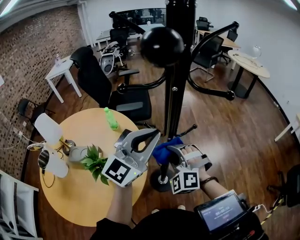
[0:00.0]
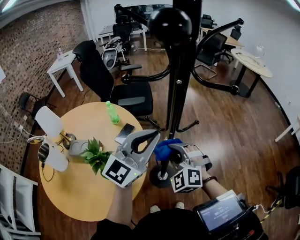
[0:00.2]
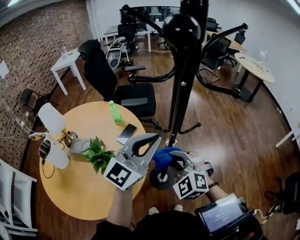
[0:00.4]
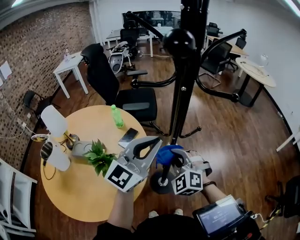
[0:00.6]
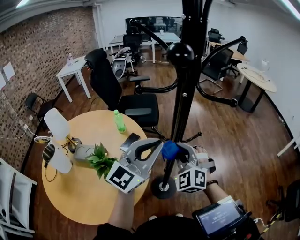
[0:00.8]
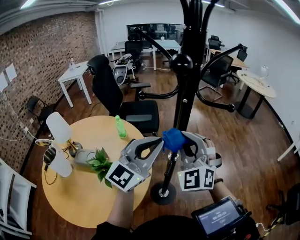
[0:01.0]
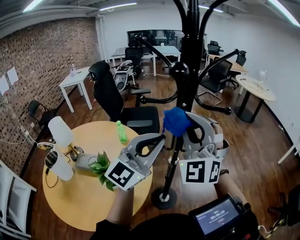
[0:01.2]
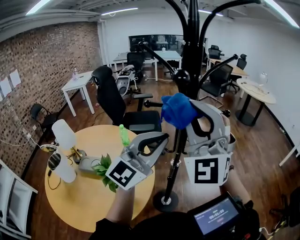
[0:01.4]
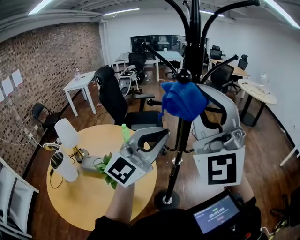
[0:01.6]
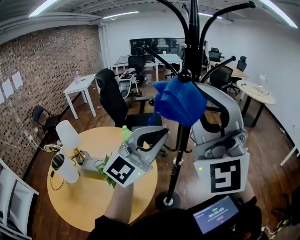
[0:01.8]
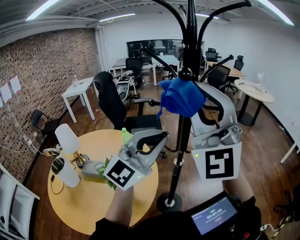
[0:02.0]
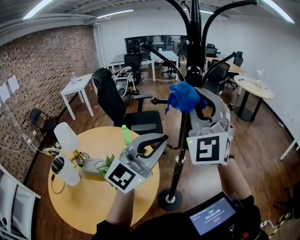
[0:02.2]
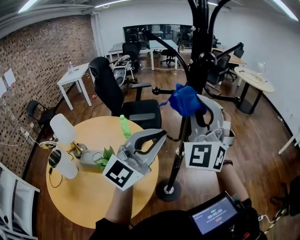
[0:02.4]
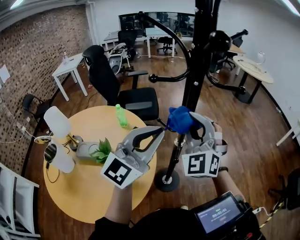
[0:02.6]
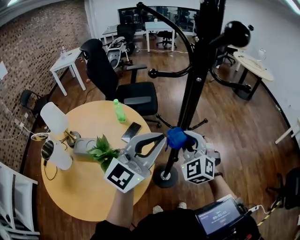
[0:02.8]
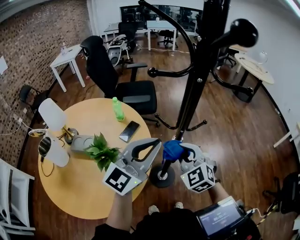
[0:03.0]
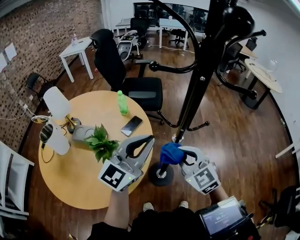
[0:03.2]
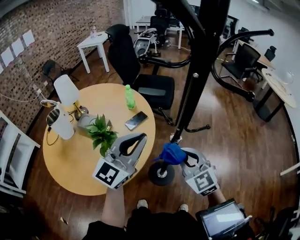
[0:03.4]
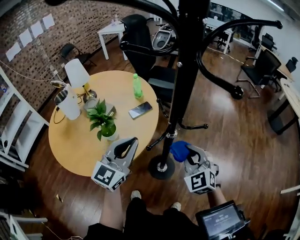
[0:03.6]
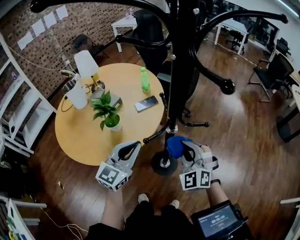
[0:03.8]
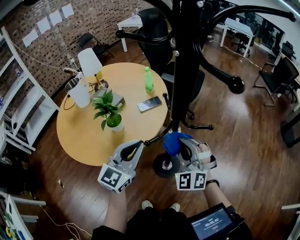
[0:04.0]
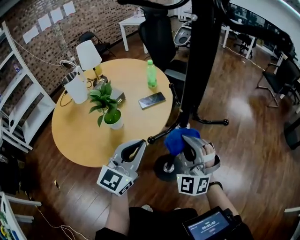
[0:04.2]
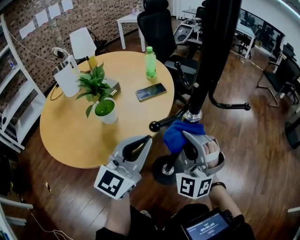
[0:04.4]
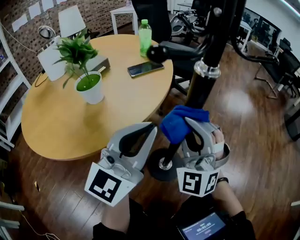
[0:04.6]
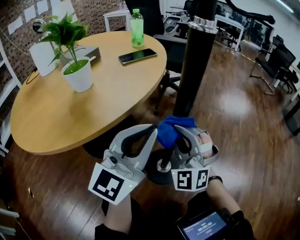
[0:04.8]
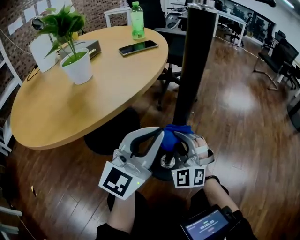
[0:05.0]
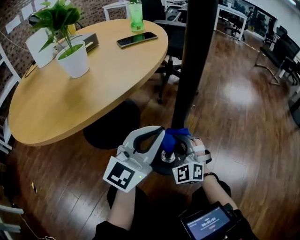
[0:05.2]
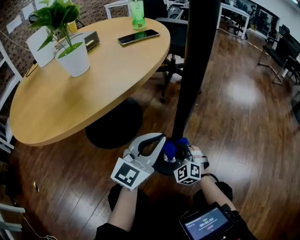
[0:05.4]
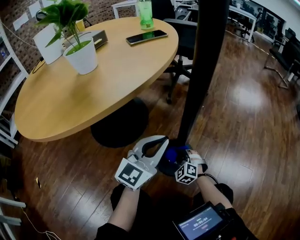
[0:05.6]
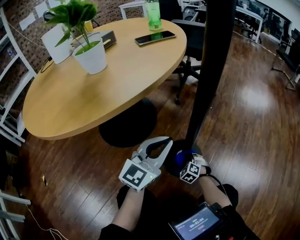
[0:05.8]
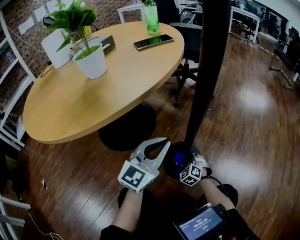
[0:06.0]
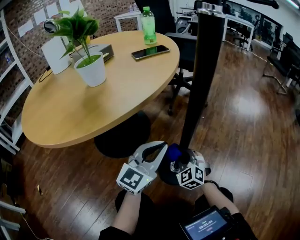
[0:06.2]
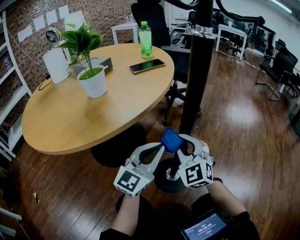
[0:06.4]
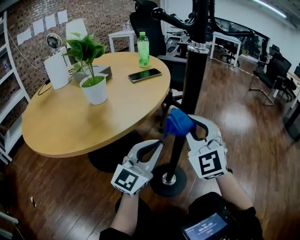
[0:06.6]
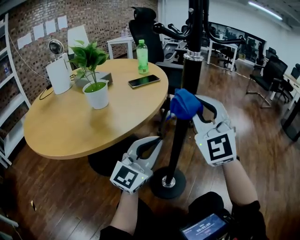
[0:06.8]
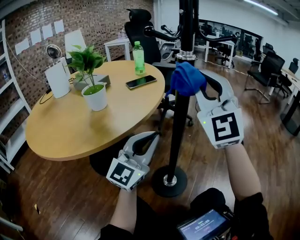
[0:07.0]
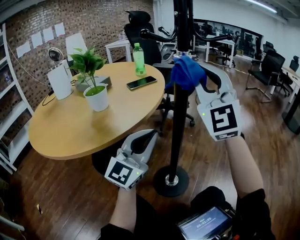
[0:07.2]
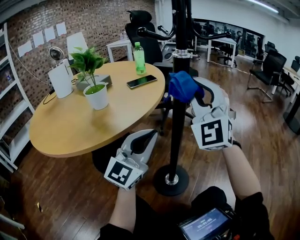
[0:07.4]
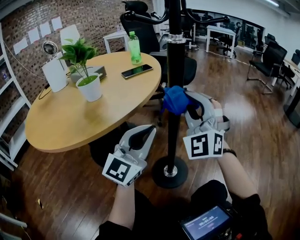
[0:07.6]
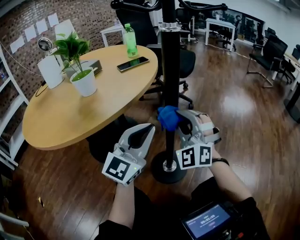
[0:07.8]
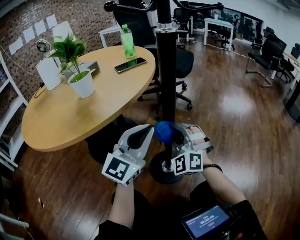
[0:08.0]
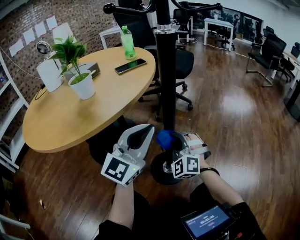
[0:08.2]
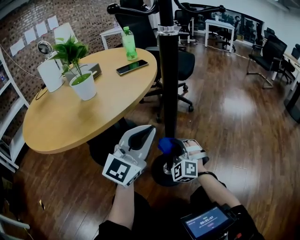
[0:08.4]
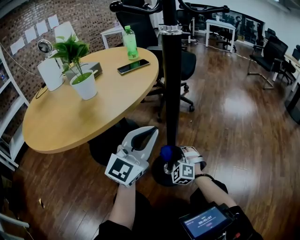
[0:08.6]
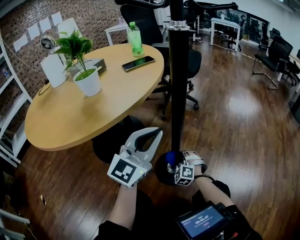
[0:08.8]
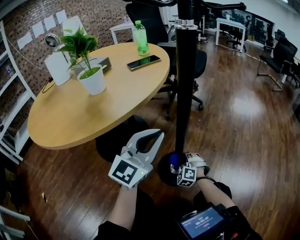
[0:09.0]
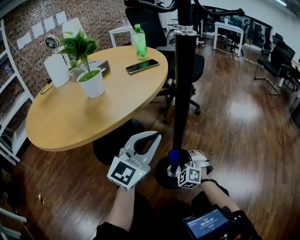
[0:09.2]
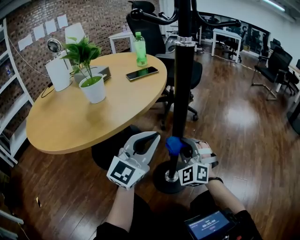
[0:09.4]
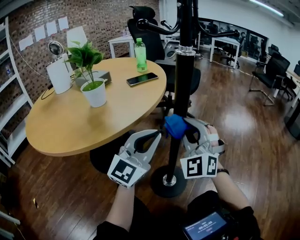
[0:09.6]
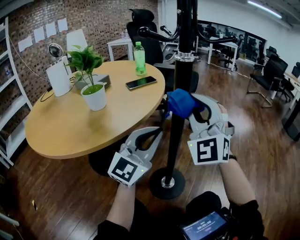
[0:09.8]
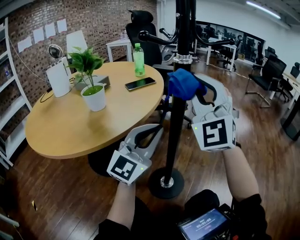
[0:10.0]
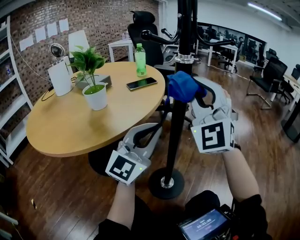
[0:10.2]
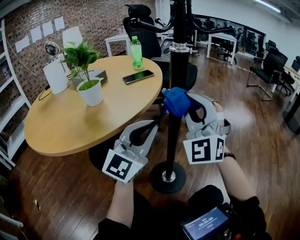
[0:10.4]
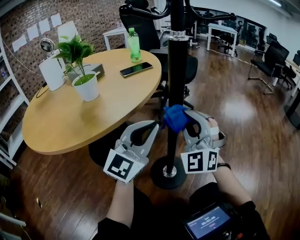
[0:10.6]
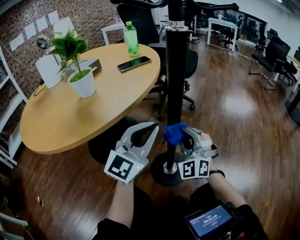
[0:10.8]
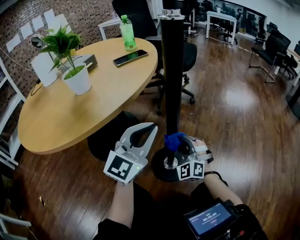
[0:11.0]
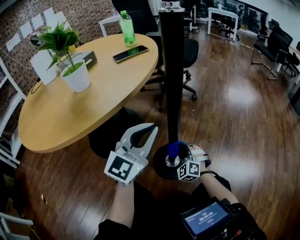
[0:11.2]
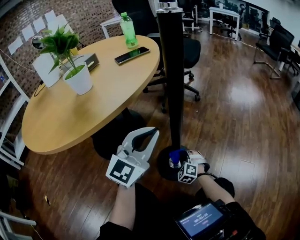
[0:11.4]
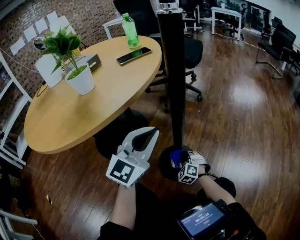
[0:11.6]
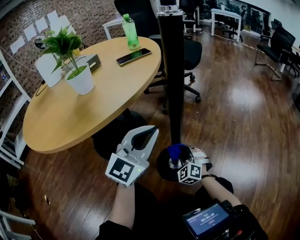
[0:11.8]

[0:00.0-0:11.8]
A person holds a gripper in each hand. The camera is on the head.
0:00.0 to 0:01.4: The right gripper moves upward, some 35 cm, and tips its fingers upward by some 40 degrees; the left gripper shifts about 10 cm upward.
0:01.4 to 0:03.0: The right gripper moves downward, about 35 cm, and points its fingers some 50 degrees further downward. Meanwhile the left gripper goes some 10 cm downward.
0:03.0 to 0:04.4: The right gripper heads downward, covering roughly 10 cm, and swivels roughly 50 degrees. Meanwhile the left gripper moves downward, roughly 25 cm, and swivels roughly 40 degrees.
0:04.4 to 0:06.0: The right gripper heads downward, covering about 60 cm, and angles its fingers downward, by some 50 degrees. Meanwhile the left gripper is displaced downward by about 35 cm.
0:06.0 to 0:07.4: The right gripper goes some 60 cm upward, and angles its fingers upward, by approximately 60 degrees; the left gripper shifts about 20 cm upward.
0:07.4 to 0:08.8: The left gripper heads downward, covering about 5 cm. The right gripper heads downward, covering approximately 50 cm, and angles its fingers downward, by roughly 50 degrees.
0:08.8 to 0:10.4: The left gripper travels upward by approximately 5 cm. The right gripper goes roughly 50 cm upward, and tilts its fingers about 50 degrees upward.
0:10.4 to 0:11.8: The right gripper heads downward, covering roughly 40 cm, and points its fingers roughly 40 degrees further downward; the left gripper is displaced downward by about 10 cm.

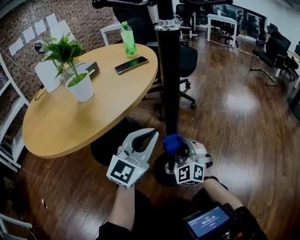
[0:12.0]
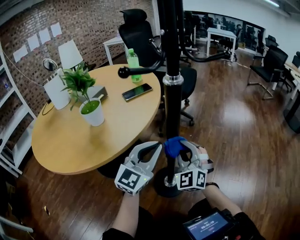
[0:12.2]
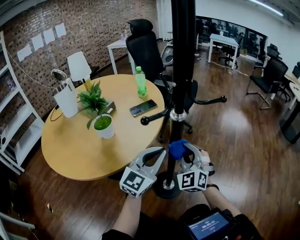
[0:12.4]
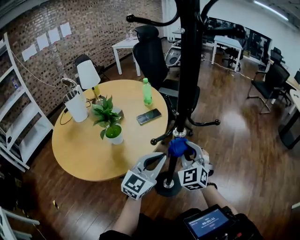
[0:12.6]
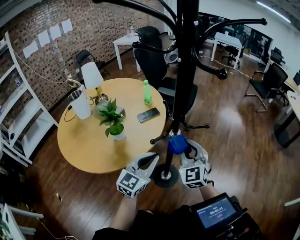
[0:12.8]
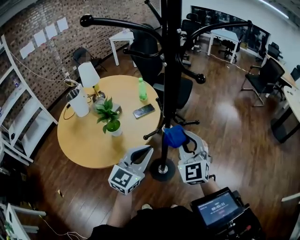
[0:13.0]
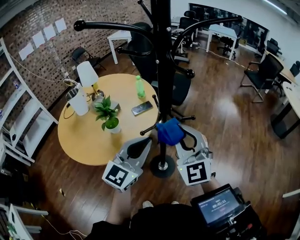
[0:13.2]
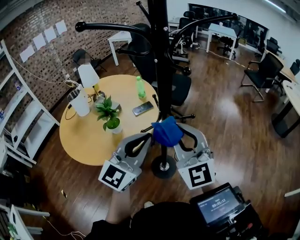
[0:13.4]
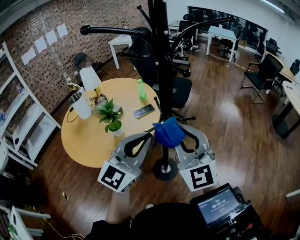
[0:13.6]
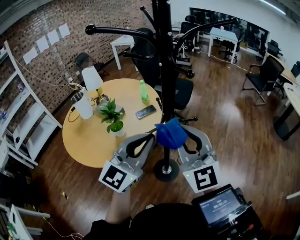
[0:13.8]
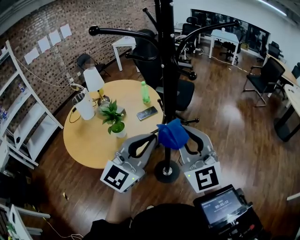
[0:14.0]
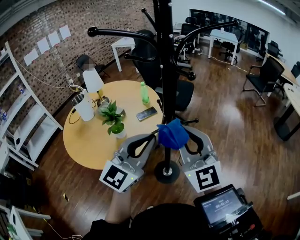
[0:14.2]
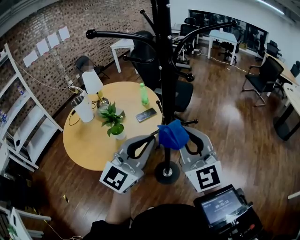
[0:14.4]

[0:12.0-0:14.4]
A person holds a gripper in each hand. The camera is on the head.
0:12.0 to 0:13.2: The two grippers go roughly 50 cm upward. The right gripper rotates about 20 degrees.
0:13.2 to 0:14.4: Both grippers move upward, about 5 cm.

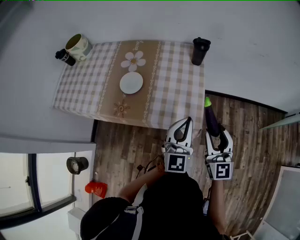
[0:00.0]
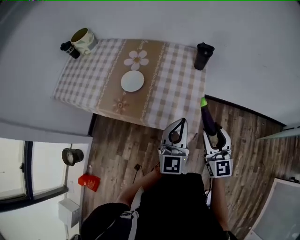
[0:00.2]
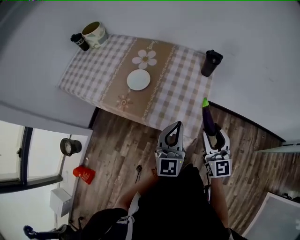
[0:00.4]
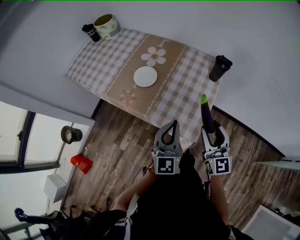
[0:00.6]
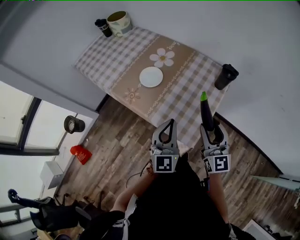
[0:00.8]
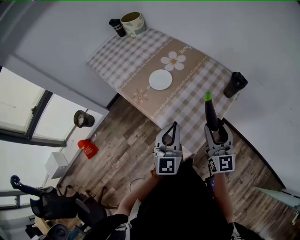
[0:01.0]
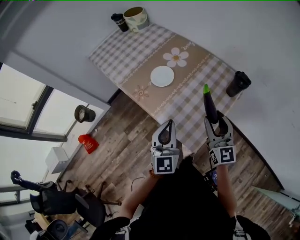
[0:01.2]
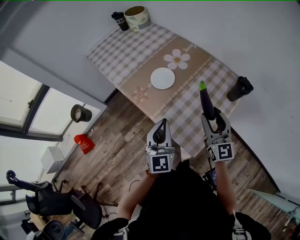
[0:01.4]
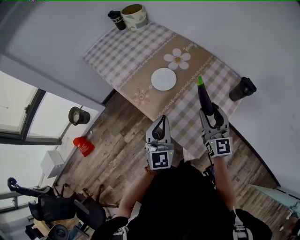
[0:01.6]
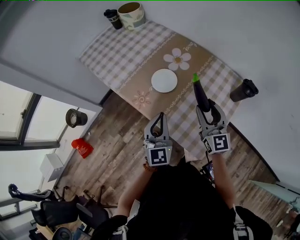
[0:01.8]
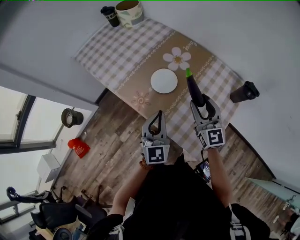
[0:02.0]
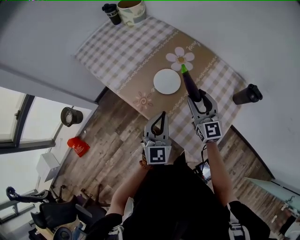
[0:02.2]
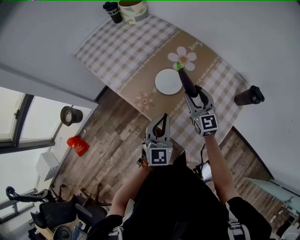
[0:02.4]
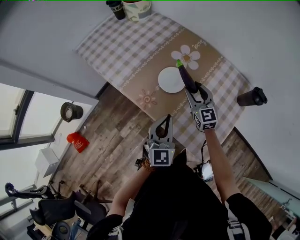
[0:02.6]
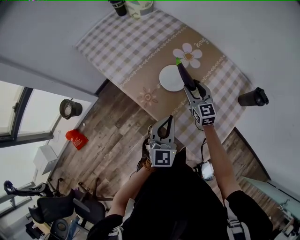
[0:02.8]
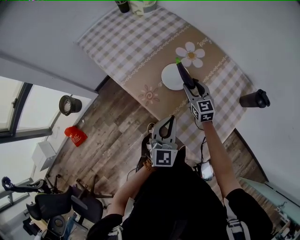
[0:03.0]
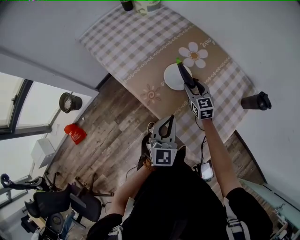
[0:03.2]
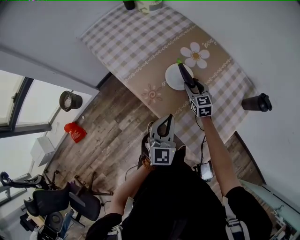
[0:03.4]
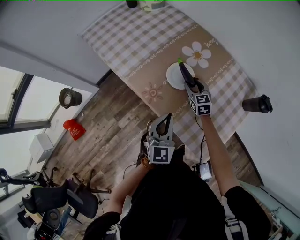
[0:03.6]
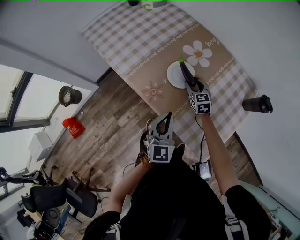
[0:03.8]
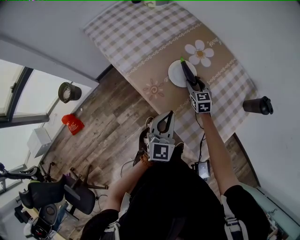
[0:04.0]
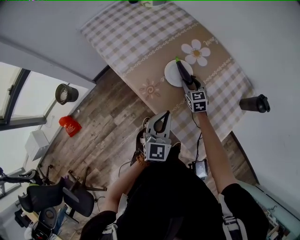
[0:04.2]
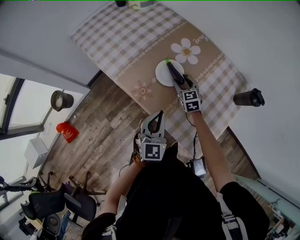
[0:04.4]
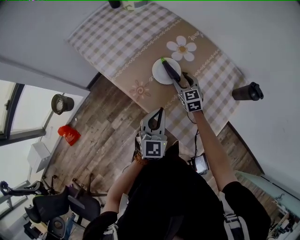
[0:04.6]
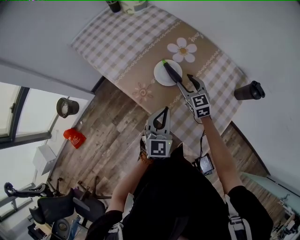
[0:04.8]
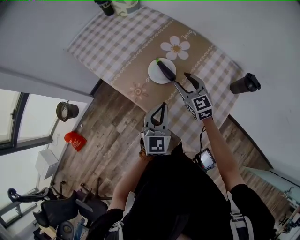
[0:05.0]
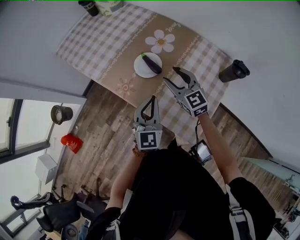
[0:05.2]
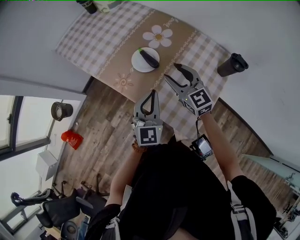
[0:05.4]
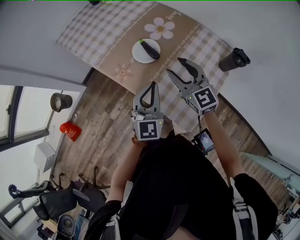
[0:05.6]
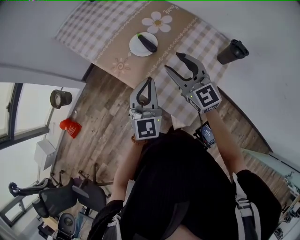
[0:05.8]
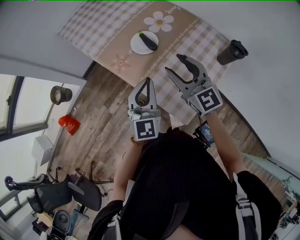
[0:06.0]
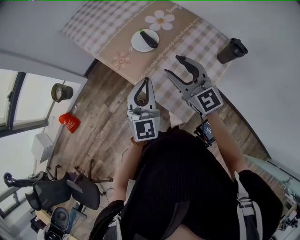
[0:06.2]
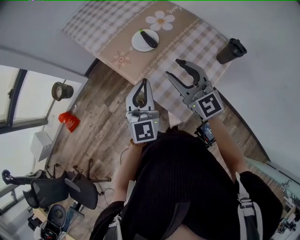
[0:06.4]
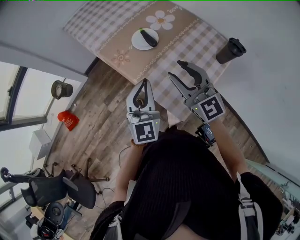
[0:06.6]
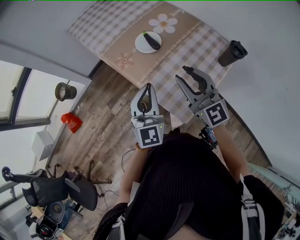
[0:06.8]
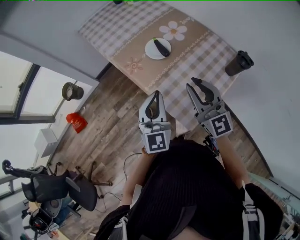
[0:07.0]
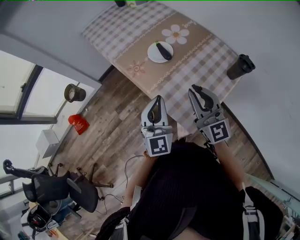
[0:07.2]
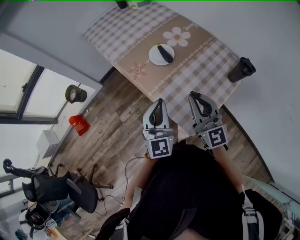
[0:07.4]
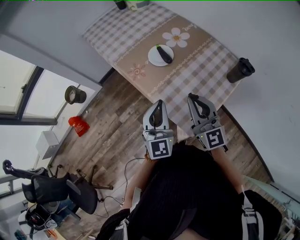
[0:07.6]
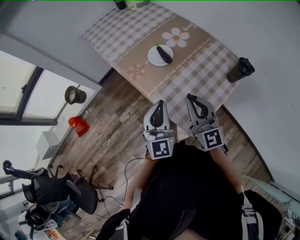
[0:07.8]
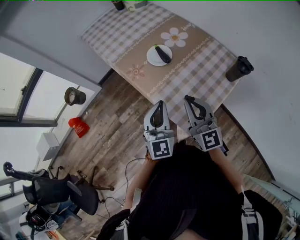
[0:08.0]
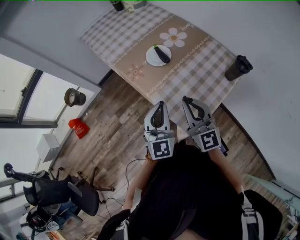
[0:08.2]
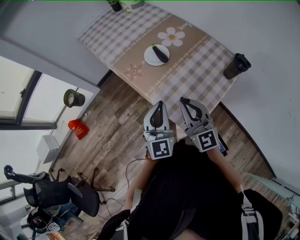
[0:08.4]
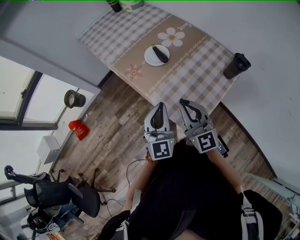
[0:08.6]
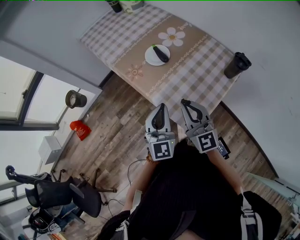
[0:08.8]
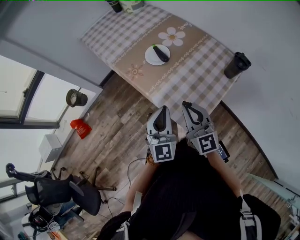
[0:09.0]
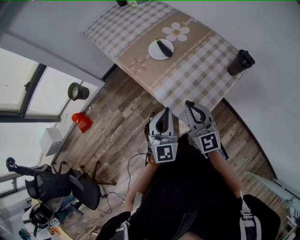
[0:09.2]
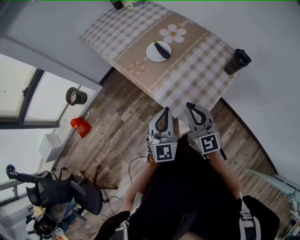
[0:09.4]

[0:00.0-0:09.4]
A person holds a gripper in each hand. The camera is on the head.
0:00.0 to 0:01.6: The left gripper changes place by roughly 15 cm, and turns by about 50 degrees. The right gripper moves approximately 25 cm, and changes its angle by about 40 degrees.
0:01.6 to 0:03.2: The right gripper heads forward, downward and to the left, covering about 30 cm, and changes its angle by about 30 degrees, while the left gripper travels forward and downward by some 10 cm.
0:03.2 to 0:04.8: The grippers stay close to where they were, moving slightly.
0:04.8 to 0:06.2: The right gripper is displaced backward and upward by roughly 25 cm, and swivels about 30 degrees. Meanwhile the left gripper travels backward and upward by some 15 cm.
0:06.2 to 0:07.8: The right gripper is displaced backward by roughly 5 cm, and closes up.
0:07.8 to 0:09.4: The two grippers go roughly 5 cm backward.
